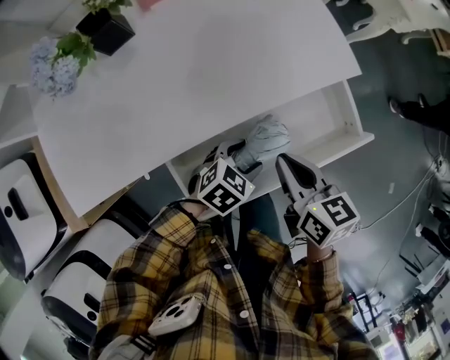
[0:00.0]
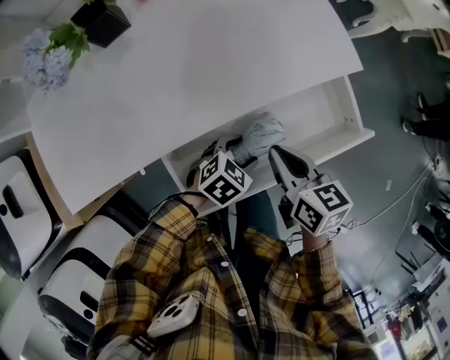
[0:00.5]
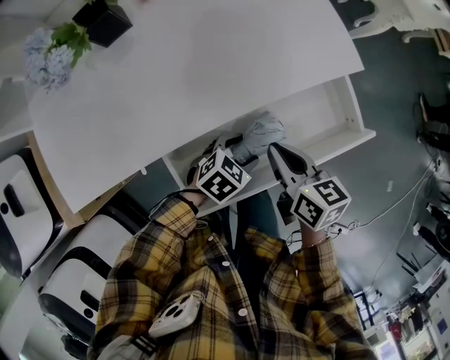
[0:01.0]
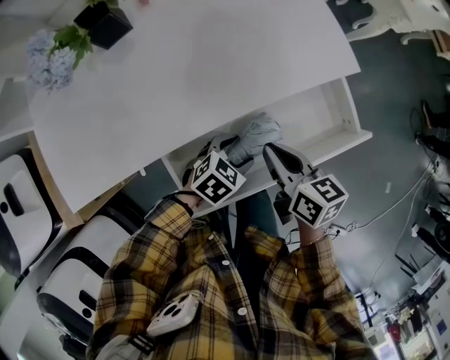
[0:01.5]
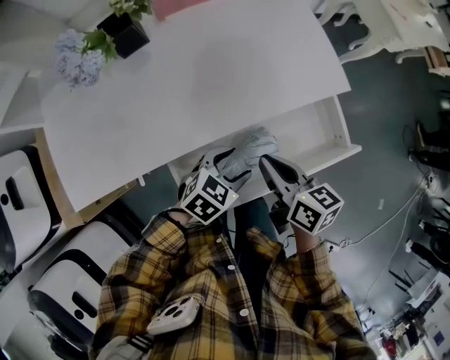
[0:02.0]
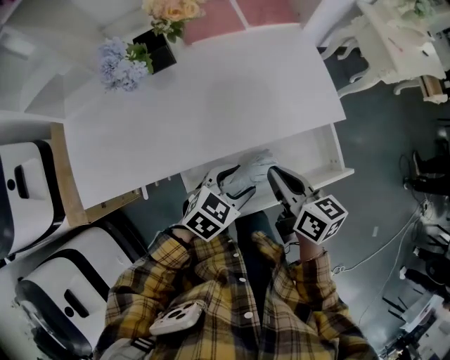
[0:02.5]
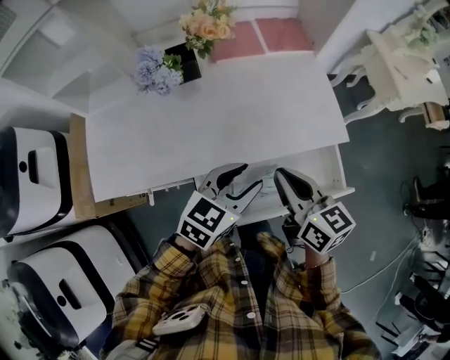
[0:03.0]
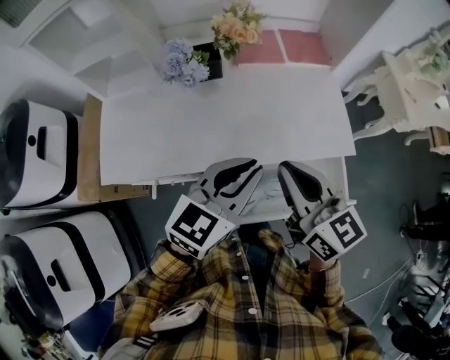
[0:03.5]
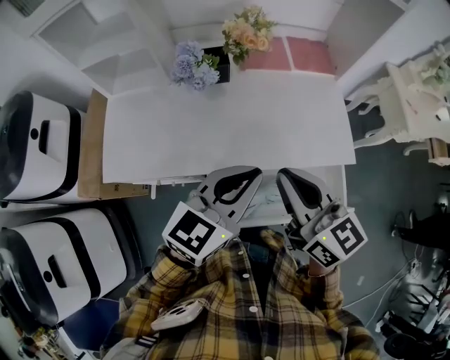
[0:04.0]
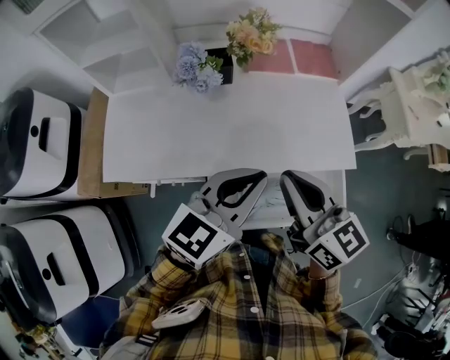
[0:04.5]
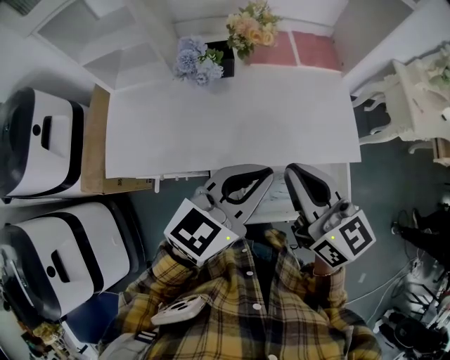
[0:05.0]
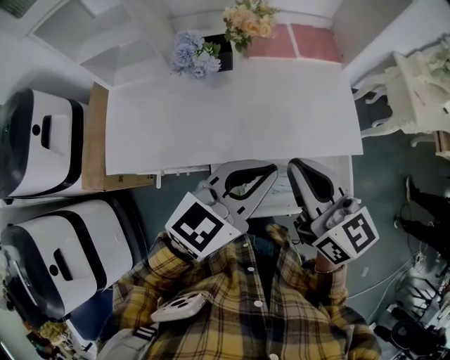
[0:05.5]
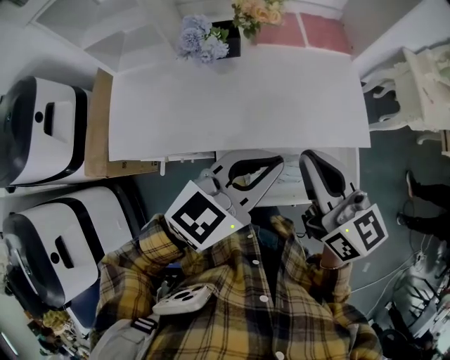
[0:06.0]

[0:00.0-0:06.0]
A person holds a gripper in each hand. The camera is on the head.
0:00.0 to 0:02.0: The grippers make only small movements.
0:02.0 to 0:04.0: The grippers both shift upward by about 25 cm. The left gripper angles its fingers upward, by about 30 degrees, and closes; the right gripper rotates about 40 degrees.
0:04.0 to 0:06.0: The grippers move only a little.

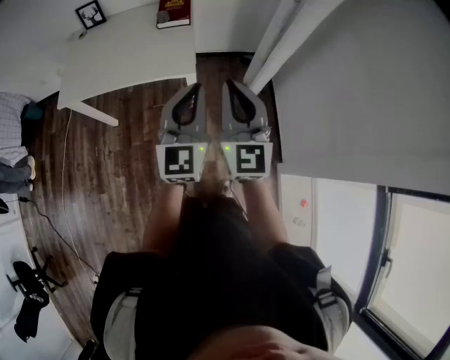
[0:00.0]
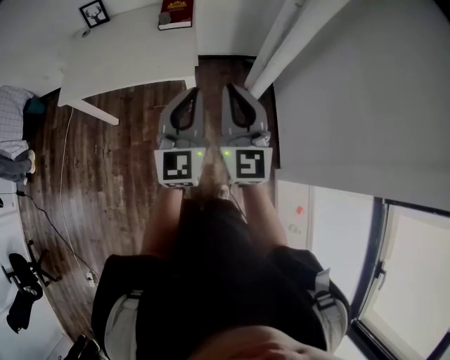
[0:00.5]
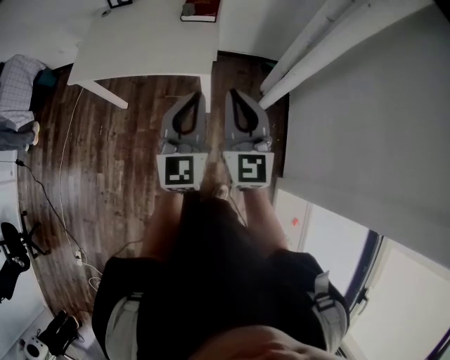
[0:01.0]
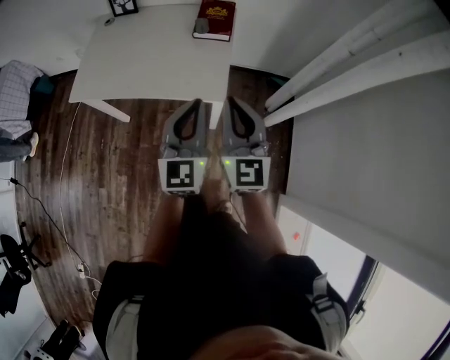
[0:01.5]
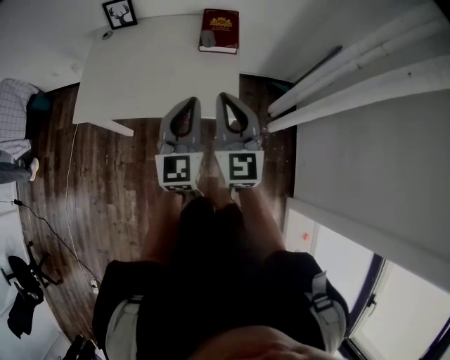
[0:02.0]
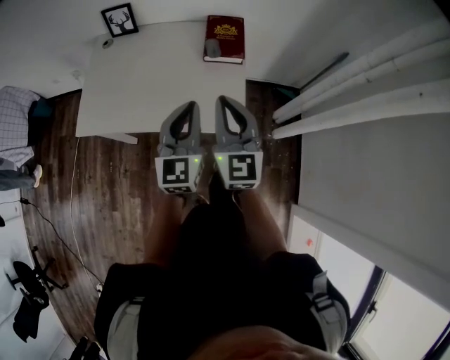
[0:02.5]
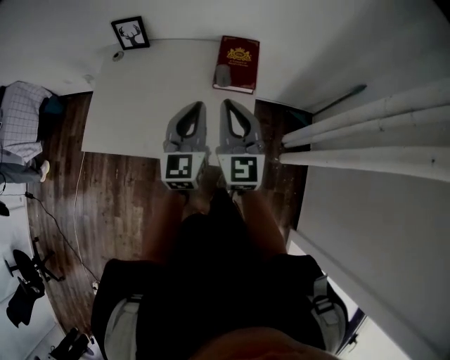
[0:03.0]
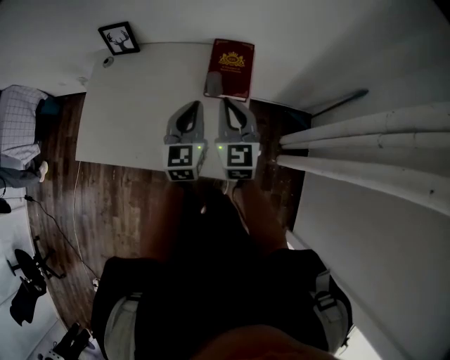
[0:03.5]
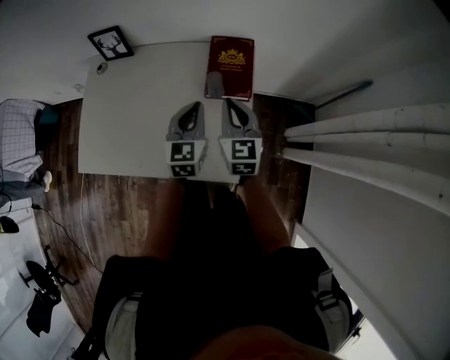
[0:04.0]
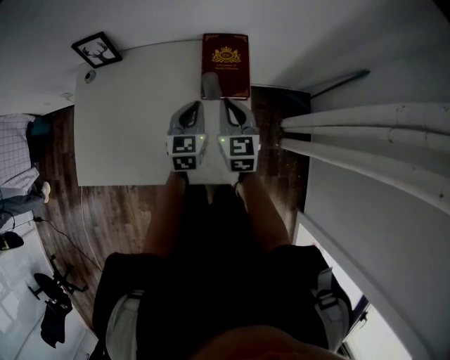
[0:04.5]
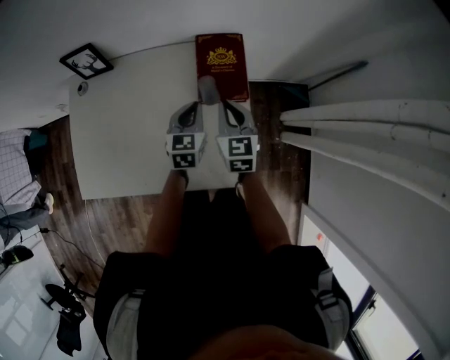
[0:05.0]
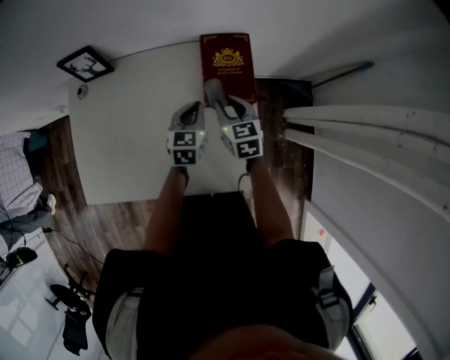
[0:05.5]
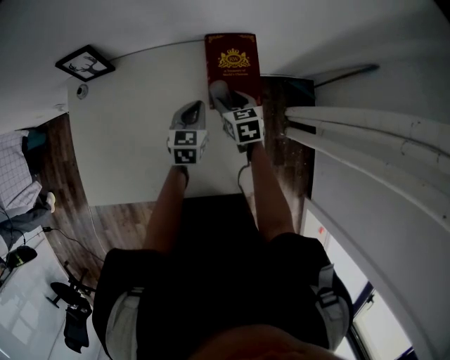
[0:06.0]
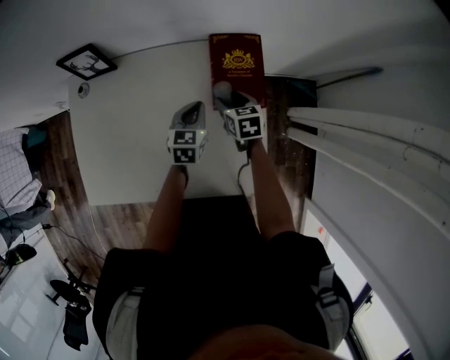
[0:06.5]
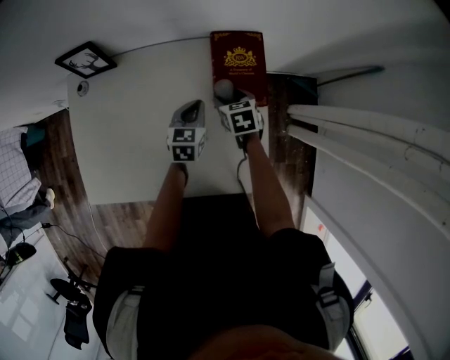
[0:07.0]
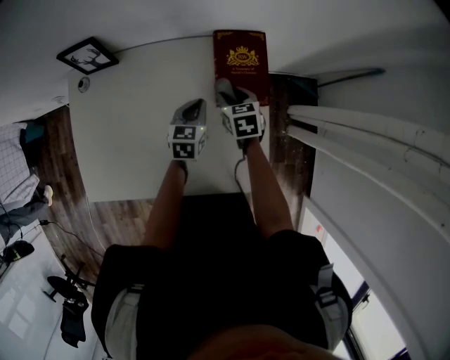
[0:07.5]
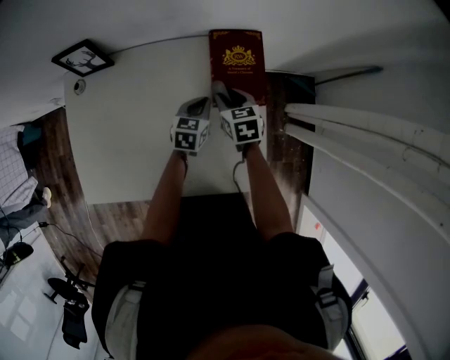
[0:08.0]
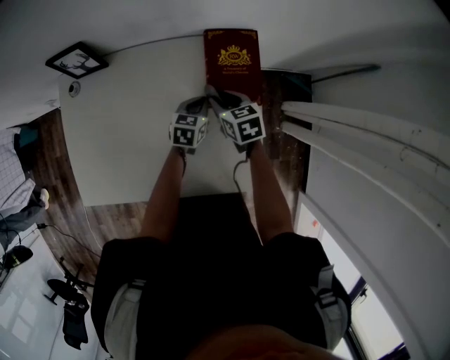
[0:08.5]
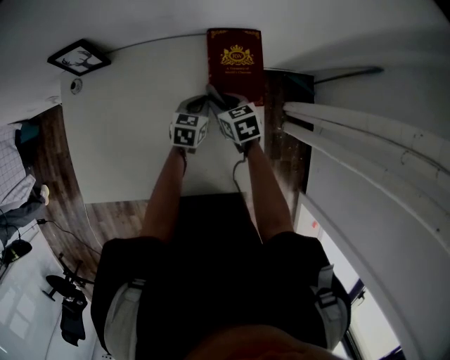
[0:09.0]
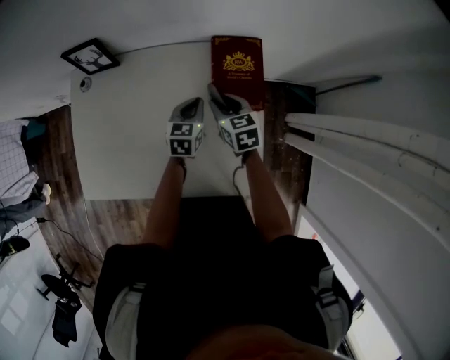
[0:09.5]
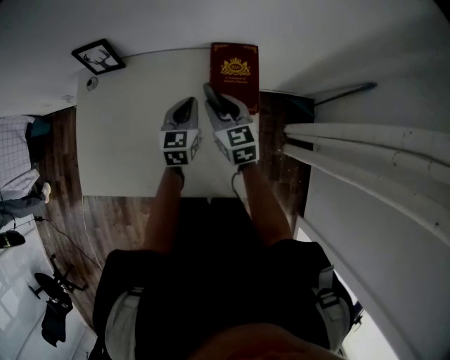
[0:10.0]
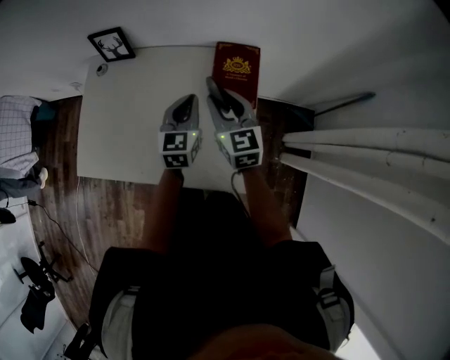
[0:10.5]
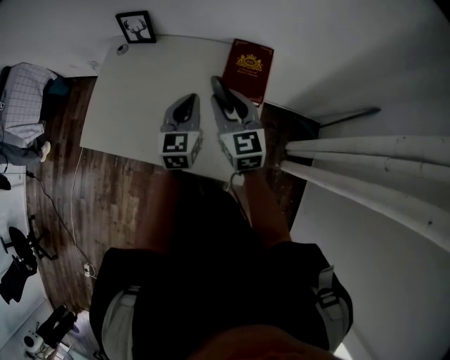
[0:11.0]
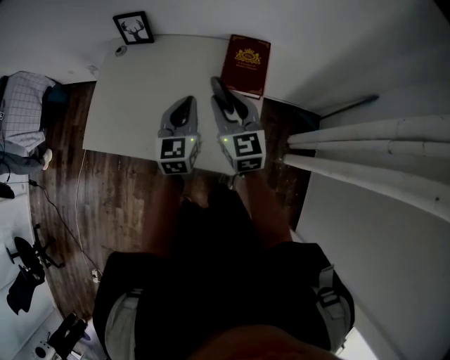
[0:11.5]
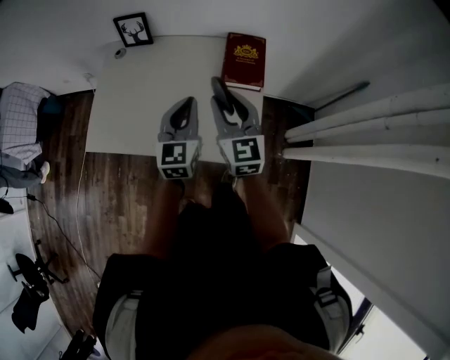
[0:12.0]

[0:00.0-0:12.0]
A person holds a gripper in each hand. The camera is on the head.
0:00.0 to 0:02.0: The two grippers go about 30 cm forward and to the left.
0:02.0 to 0:04.0: Both grippers move forward and downward, about 35 cm.
0:04.0 to 0:06.0: Both grippers move downward and forward, roughly 20 cm. The left gripper swivels roughly 20 degrees. The right gripper tips its fingers downward by roughly 30 degrees, and opens its fingers.
0:06.0 to 0:08.0: The left gripper heads downward, covering approximately 5 cm.
0:08.0 to 0:10.0: The two grippers go some 10 cm upward. The right gripper changes its angle by some 20 degrees. Meanwhile the left gripper changes its angle by some 20 degrees.
0:10.0 to 0:12.0: The grippers both shift backward and upward by about 25 cm. The right gripper turns by approximately 20 degrees.

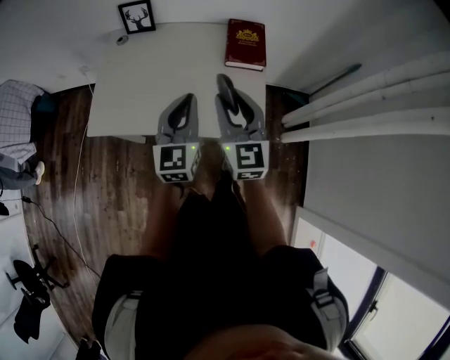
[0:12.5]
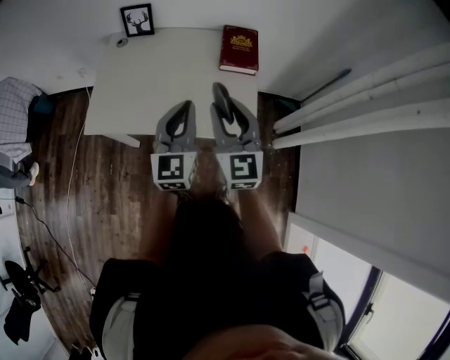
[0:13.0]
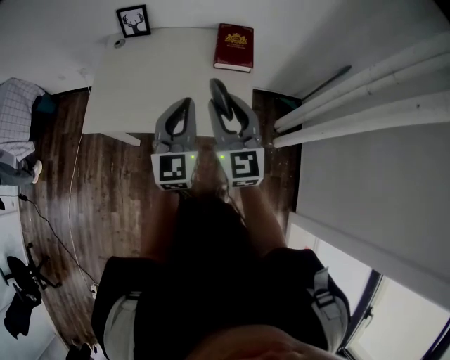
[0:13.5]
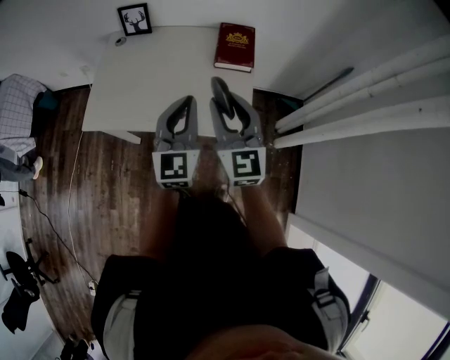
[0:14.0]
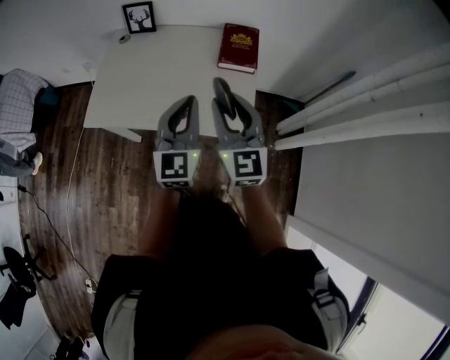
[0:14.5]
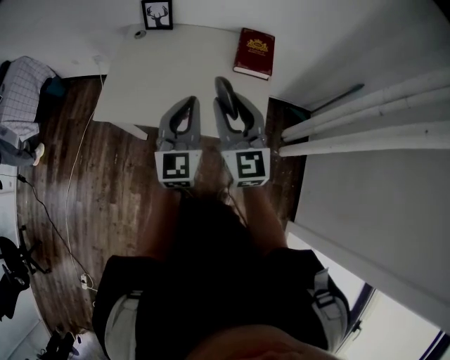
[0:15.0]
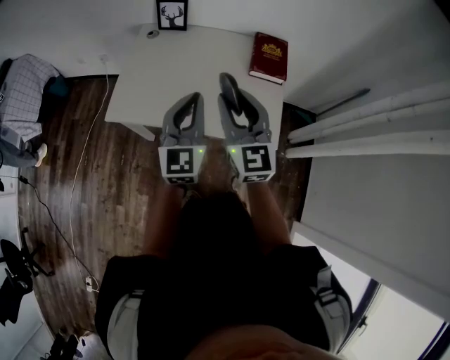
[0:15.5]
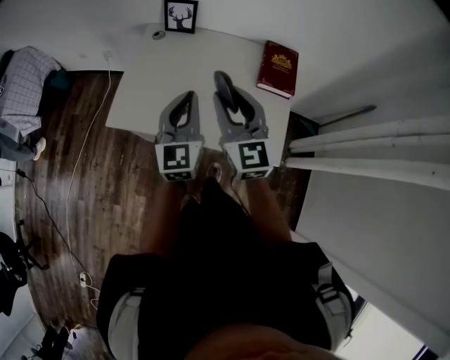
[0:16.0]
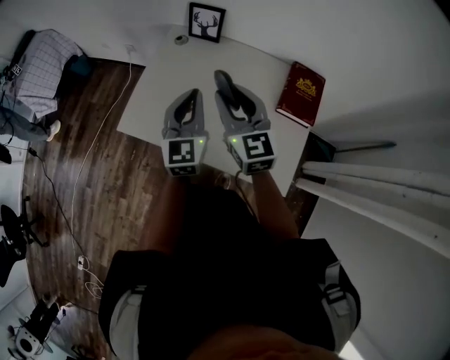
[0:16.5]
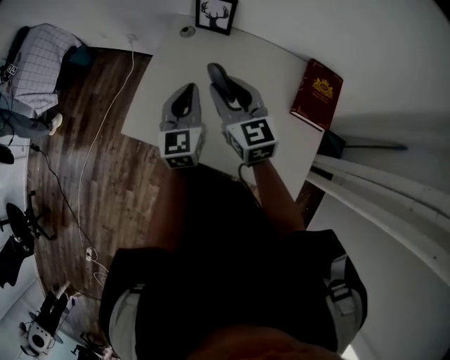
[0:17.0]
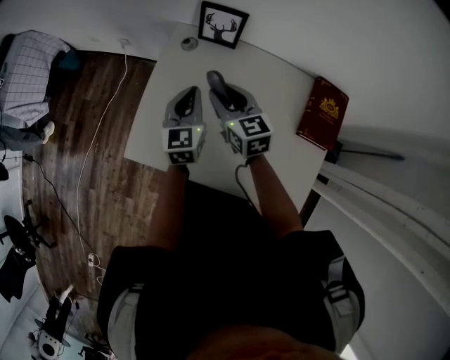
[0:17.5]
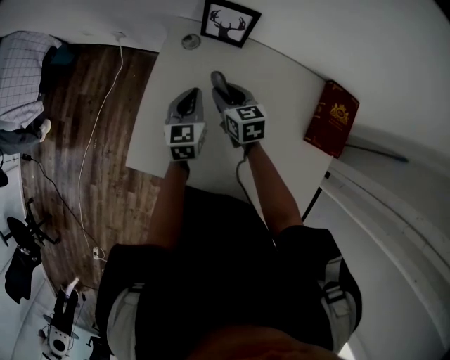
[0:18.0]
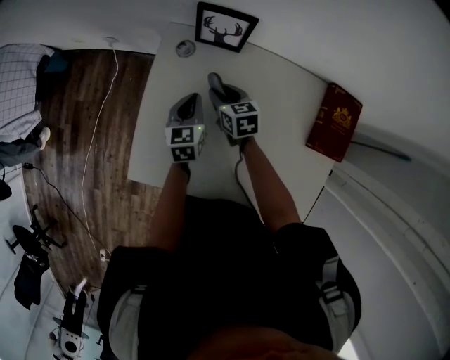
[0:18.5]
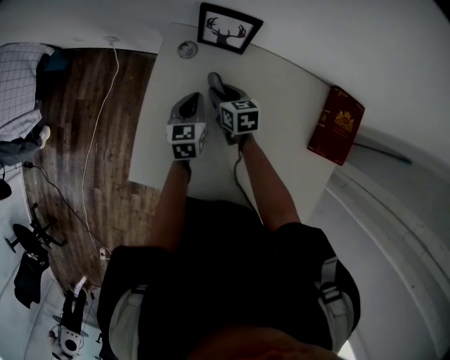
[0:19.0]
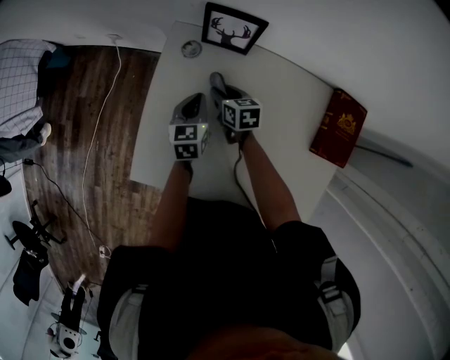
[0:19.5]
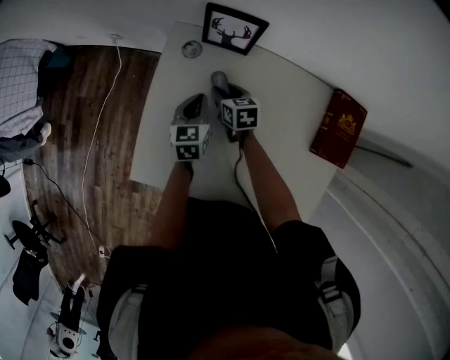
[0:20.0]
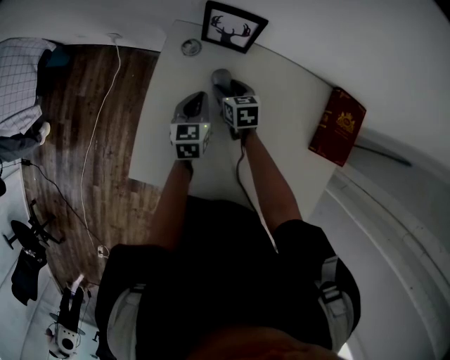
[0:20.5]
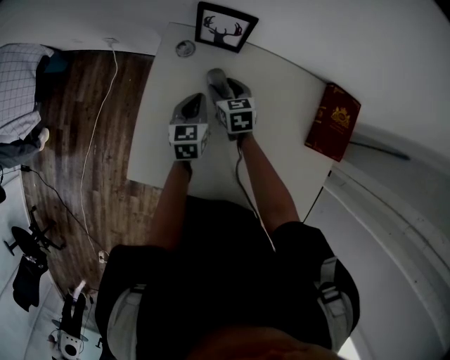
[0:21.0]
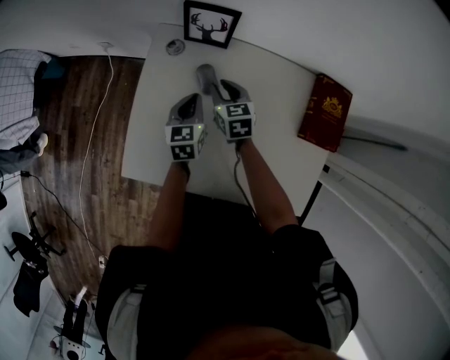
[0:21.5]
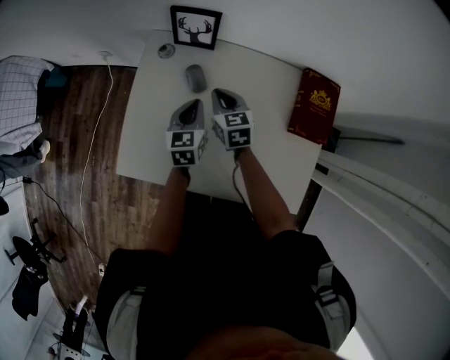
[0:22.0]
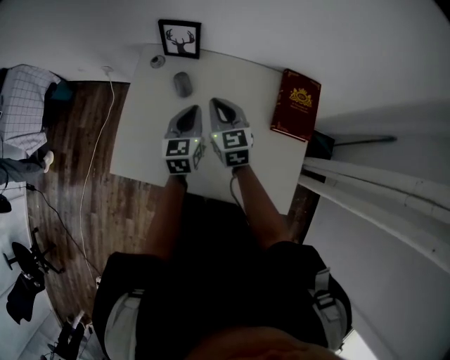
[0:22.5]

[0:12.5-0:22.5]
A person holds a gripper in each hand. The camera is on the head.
0:12.5 to 0:14.5: The left gripper shifts roughly 10 cm backward and to the right; the right gripper travels backward by about 5 cm.
0:14.5 to 0:16.5: Both grippers move forward and to the left, roughly 30 cm. The right gripper turns by about 20 degrees.
0:16.5 to 0:18.5: The left gripper moves forward and downward, about 40 cm, and tilts its fingers approximately 30 degrees downward, while the right gripper shifts approximately 40 cm downward and forward, and tips its fingers downward by about 40 degrees.
0:18.5 to 0:20.5: The right gripper opens its fingers.
0:20.5 to 0:22.5: The left gripper moves backward, upward and to the right, some 20 cm; the right gripper travels upward, backward and to the right by approximately 30 cm, changes its angle by roughly 30 degrees, and closes its fingers.
